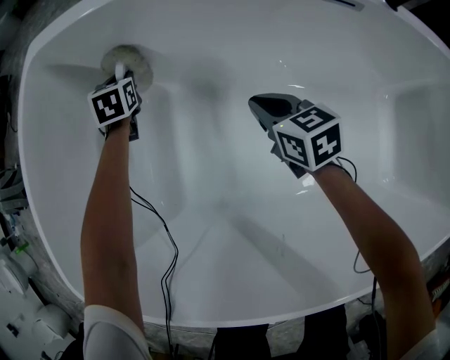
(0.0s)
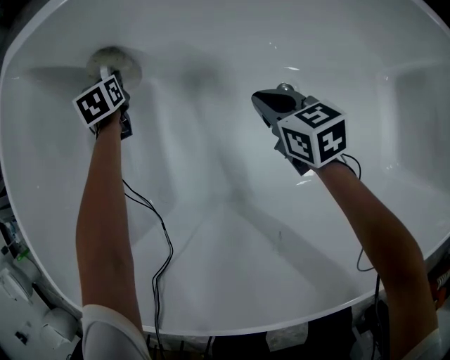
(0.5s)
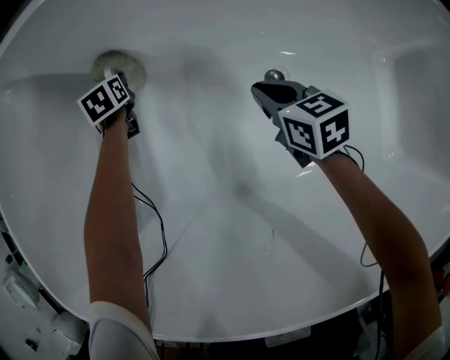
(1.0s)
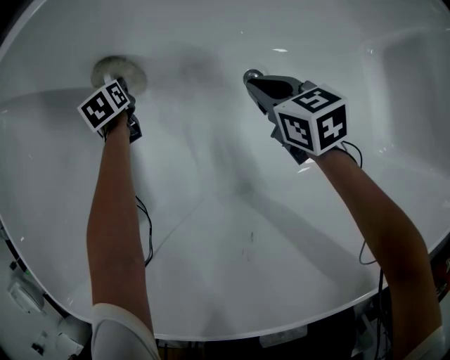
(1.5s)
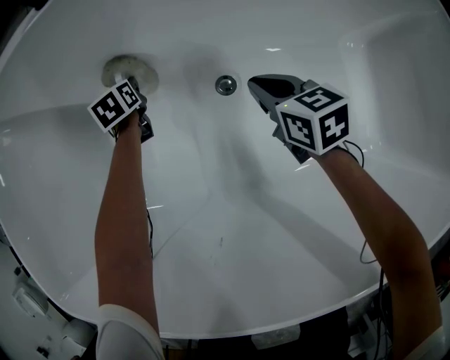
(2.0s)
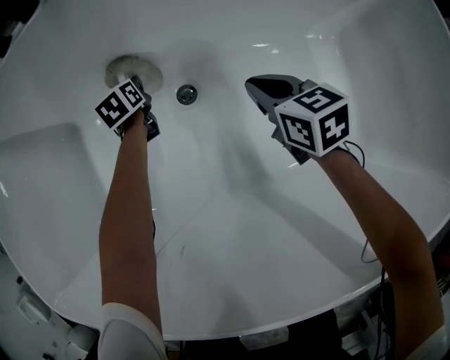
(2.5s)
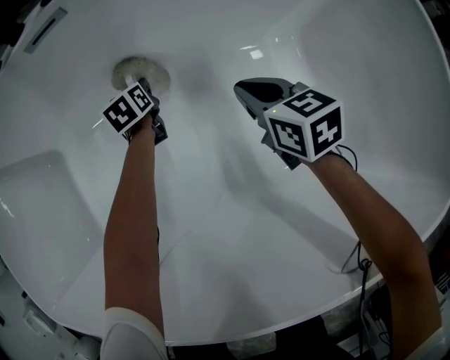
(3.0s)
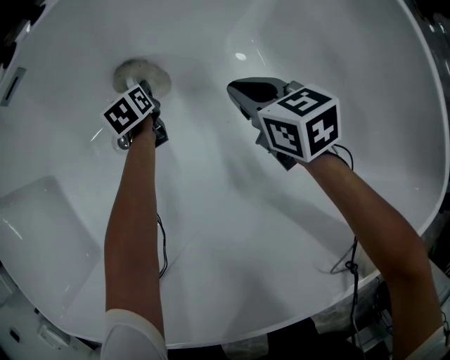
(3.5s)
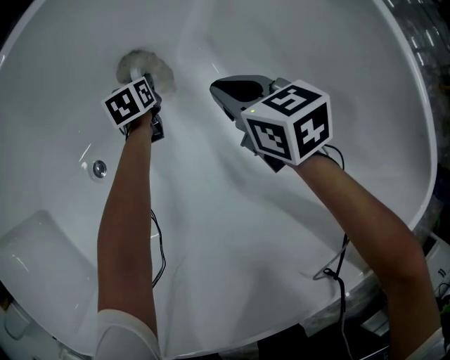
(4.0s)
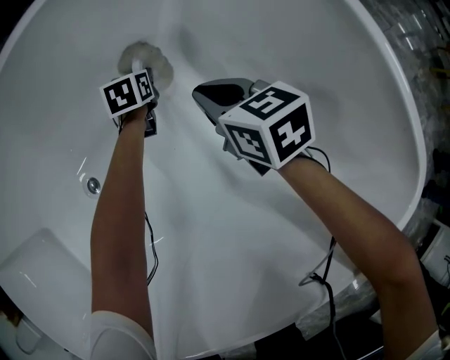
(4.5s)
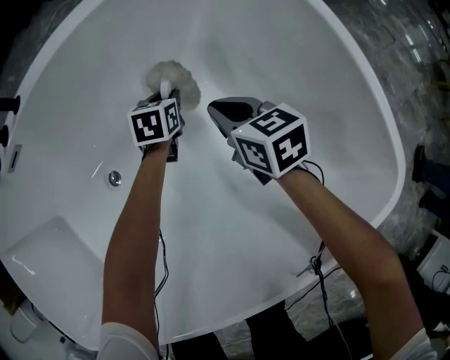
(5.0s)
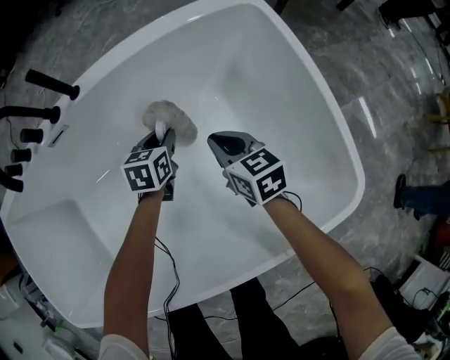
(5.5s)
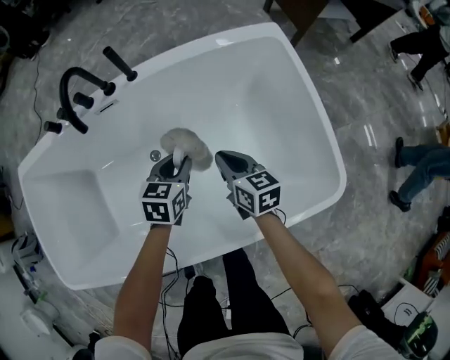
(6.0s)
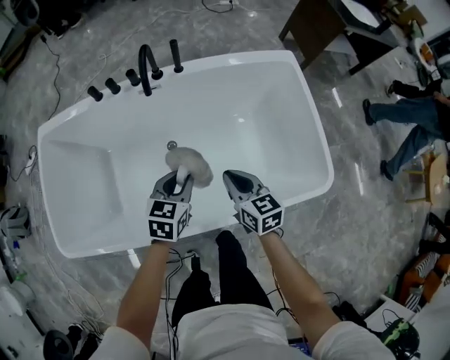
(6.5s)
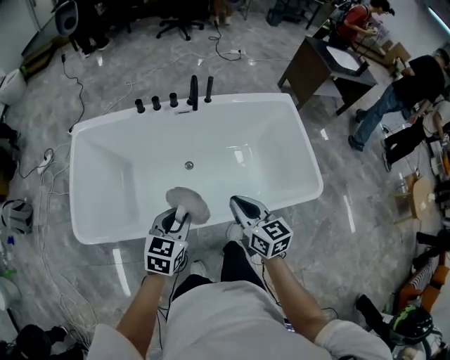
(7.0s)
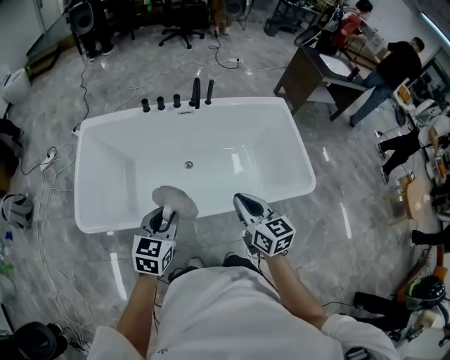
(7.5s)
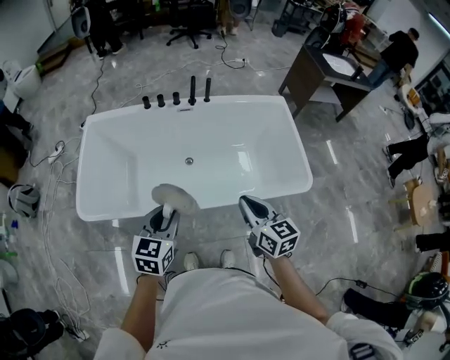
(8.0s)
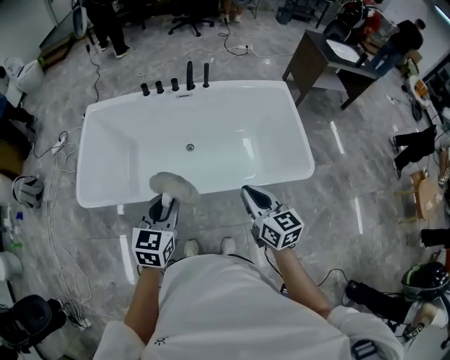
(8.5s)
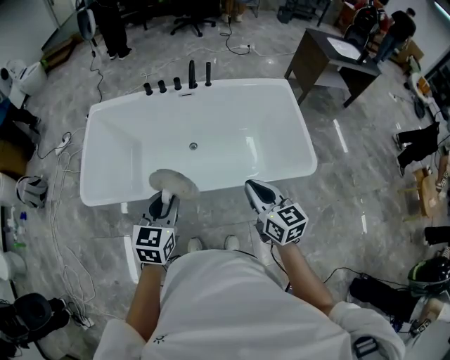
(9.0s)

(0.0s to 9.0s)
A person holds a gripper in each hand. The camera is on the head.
0.0s - 2.0s: Both grippers move to the right, downward and backward, about 20 cm.
2.0s - 4.5s: The two grippers travel together, approximately 60 cm. The left gripper turns by some 40 degrees.
4.5s - 7.0s: Both grippers are carried backward and to the left, some 60 cm. Both grippers move upward, some 60 cm.
7.0s - 9.0s: The left gripper shifts about 15 cm backward and upward, while the right gripper goes roughly 15 cm backward, to the right and upward.

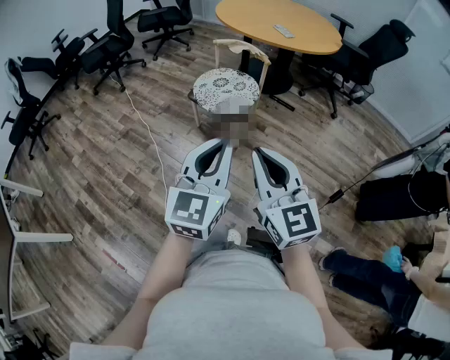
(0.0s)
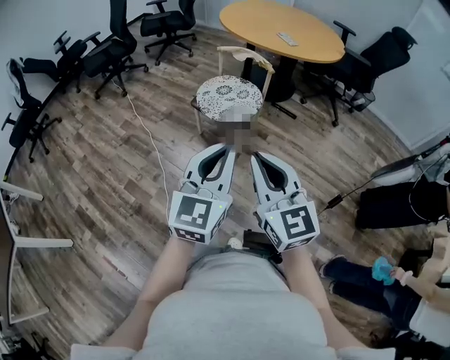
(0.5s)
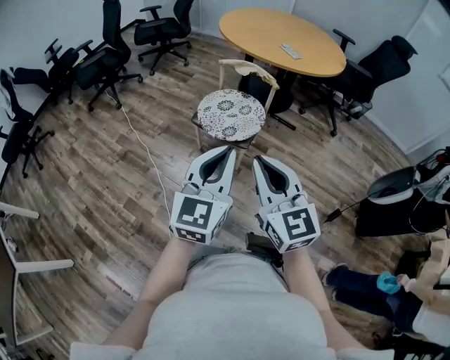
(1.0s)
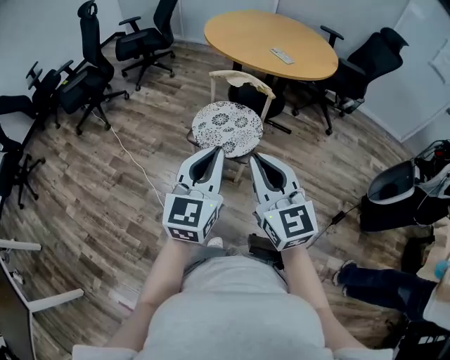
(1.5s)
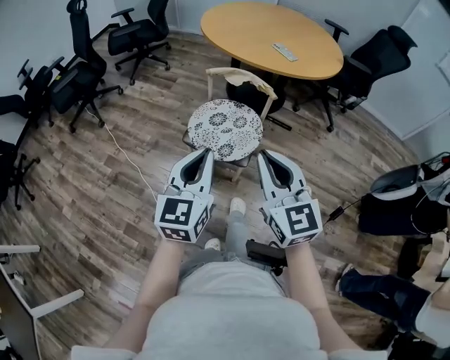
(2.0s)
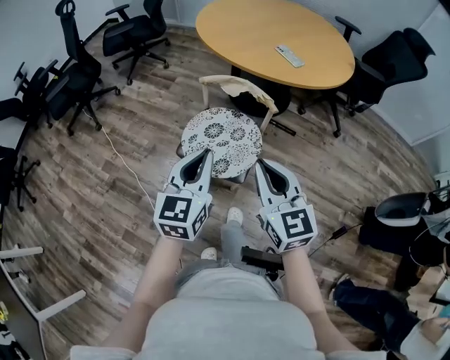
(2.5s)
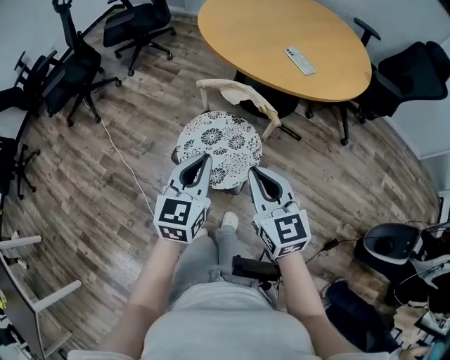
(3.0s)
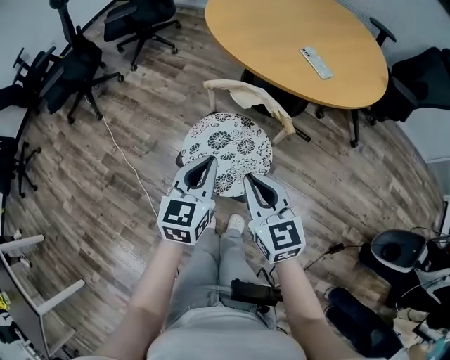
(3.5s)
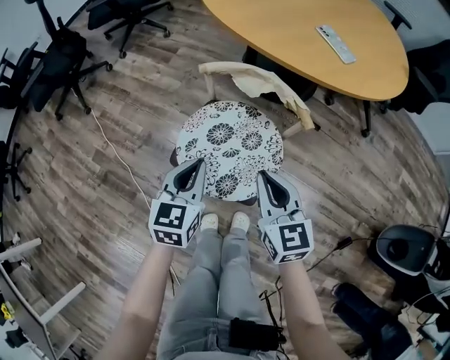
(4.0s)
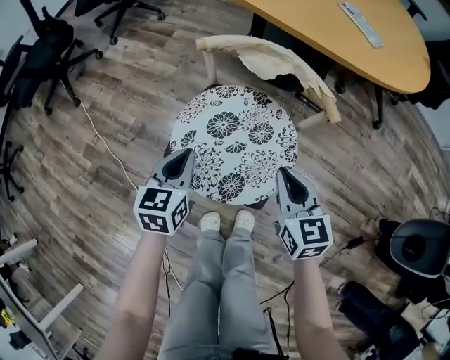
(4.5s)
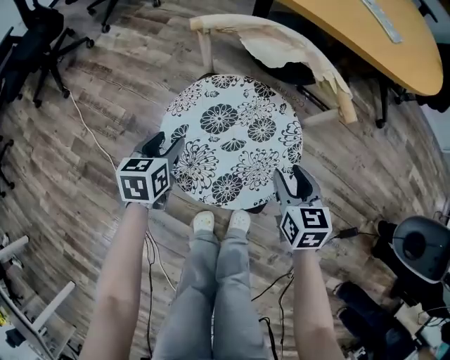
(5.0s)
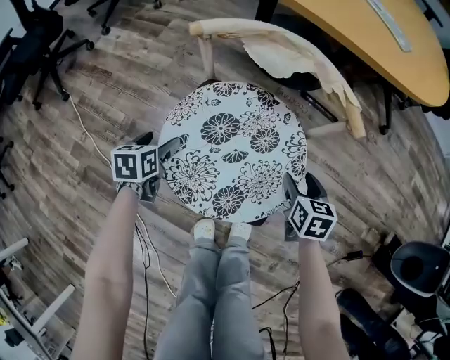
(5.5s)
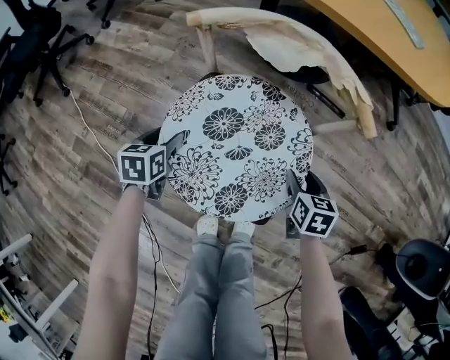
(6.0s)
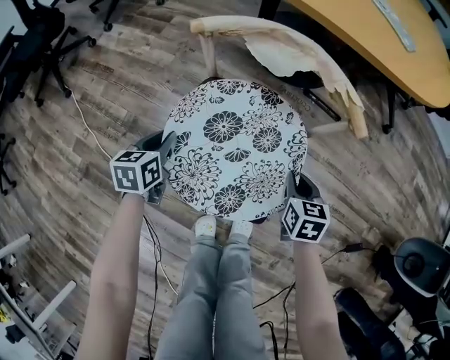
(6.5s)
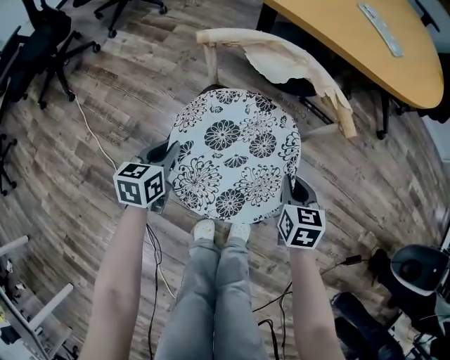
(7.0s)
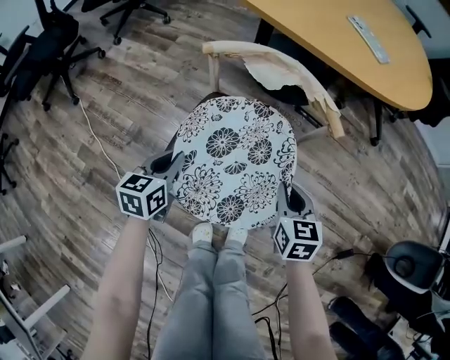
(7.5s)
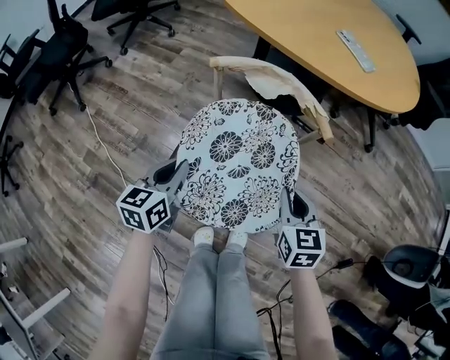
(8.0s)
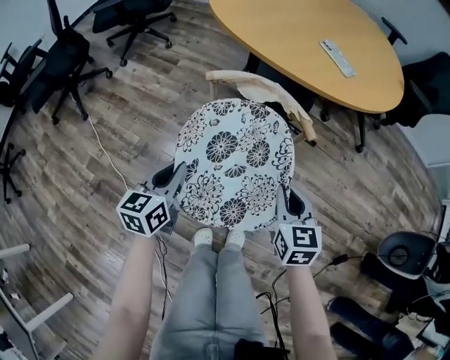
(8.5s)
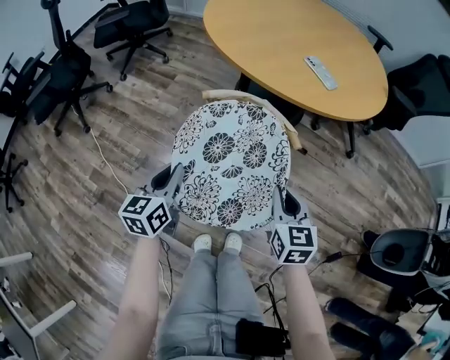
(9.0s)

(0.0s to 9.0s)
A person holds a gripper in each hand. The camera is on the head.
0.0s - 2.0s: The right gripper is displaced forward by about 30 cm, while the left gripper goes about 30 cm forward and to the left.
2.0s - 4.5s: The two grippers go some 50 cm downward and forward. The right gripper changes its angle by roughly 30 degrees. The left gripper turns by approximately 30 degrees.
4.5s - 7.0s: The right gripper travels downward by some 15 cm, rotates roughly 20 degrees, and opens and closes again, while the left gripper shifts roughly 15 cm downward and to the left, and opens and closes again.
7.0s - 9.0s: The two grippers go approximately 10 cm upward. The right gripper changes its angle by about 20 degrees.

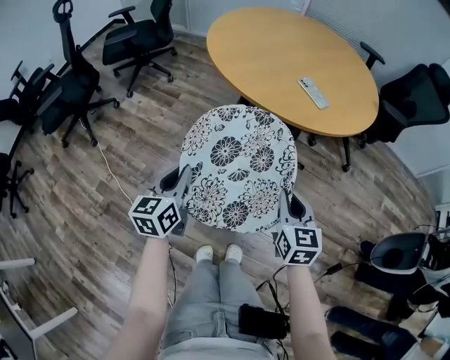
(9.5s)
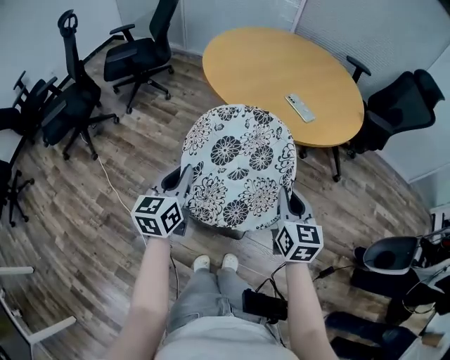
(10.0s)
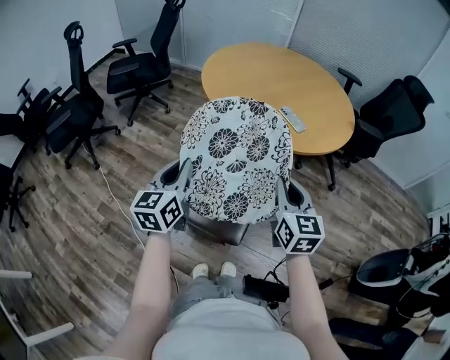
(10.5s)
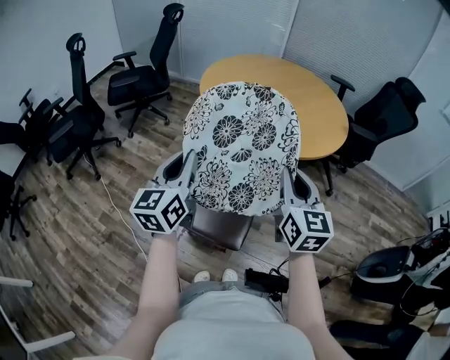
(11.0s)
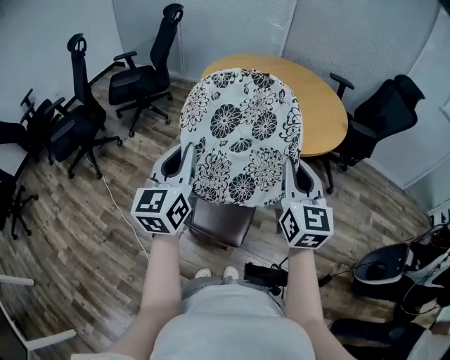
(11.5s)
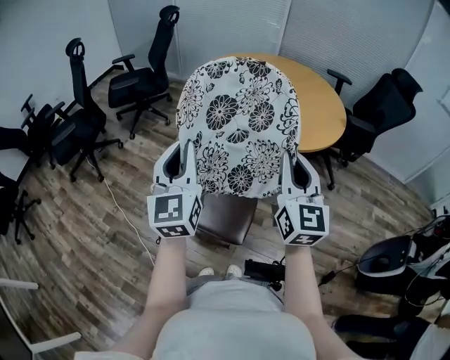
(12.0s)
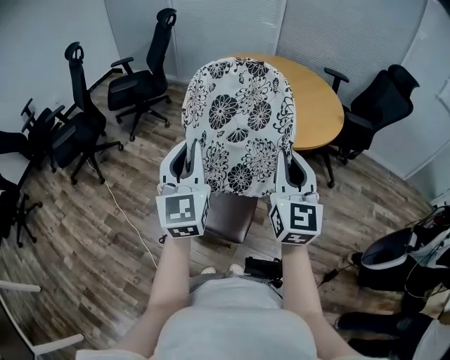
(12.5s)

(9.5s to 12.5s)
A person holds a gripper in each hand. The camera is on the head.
9.5s - 11.0s: The grippers both shift backward by about 5 cm. The left gripper changes its angle by roughly 20 degrees, while the right gripper rotates some 20 degrees.
11.0s - 12.5s: The left gripper heads backward, covering roughly 5 cm, and swivels about 30 degrees.

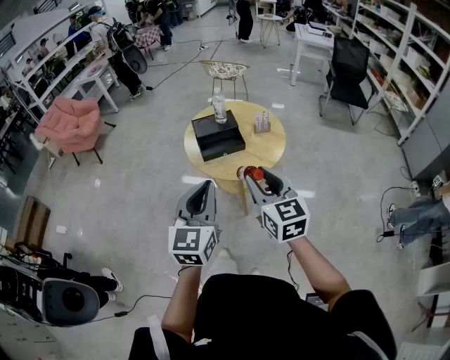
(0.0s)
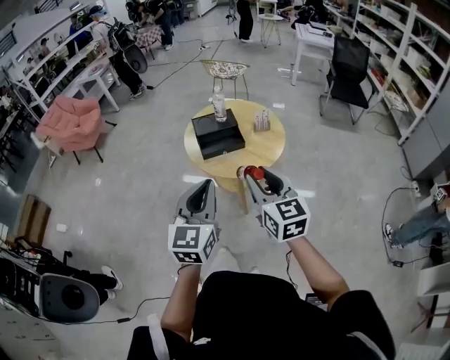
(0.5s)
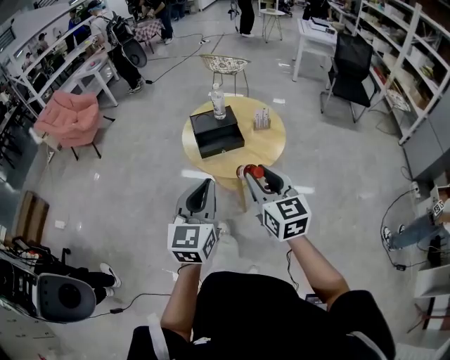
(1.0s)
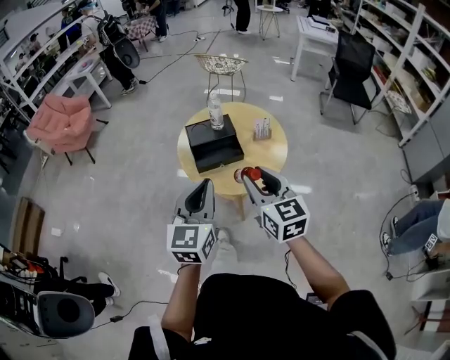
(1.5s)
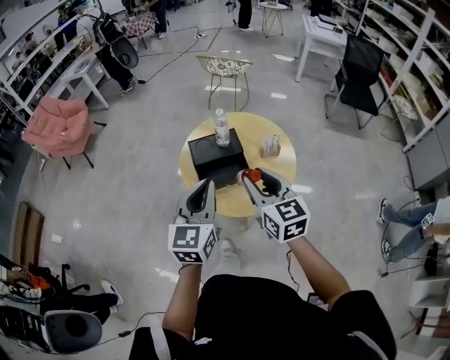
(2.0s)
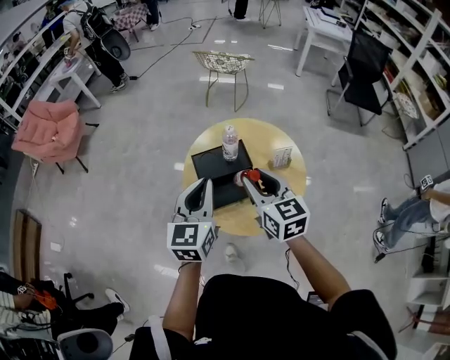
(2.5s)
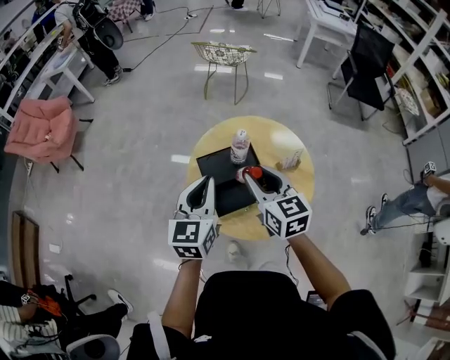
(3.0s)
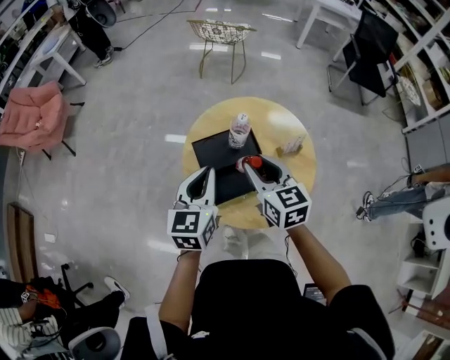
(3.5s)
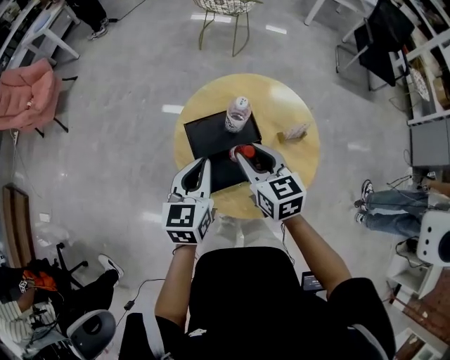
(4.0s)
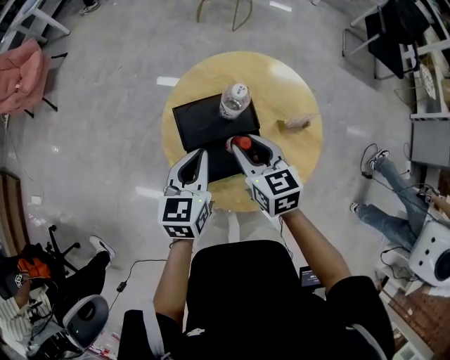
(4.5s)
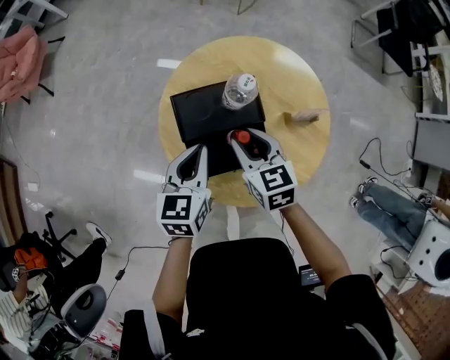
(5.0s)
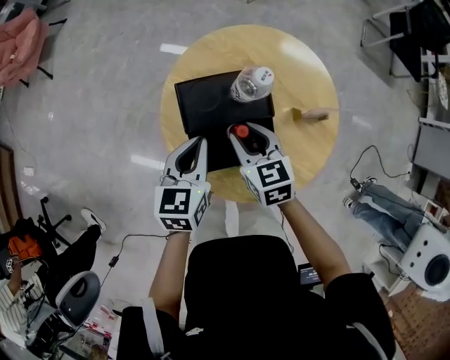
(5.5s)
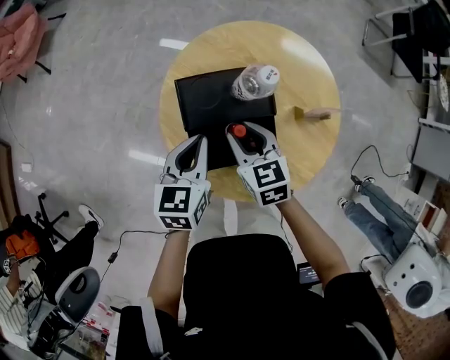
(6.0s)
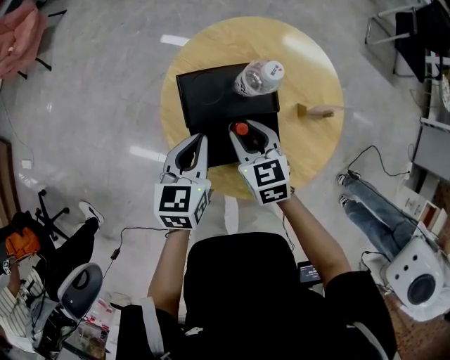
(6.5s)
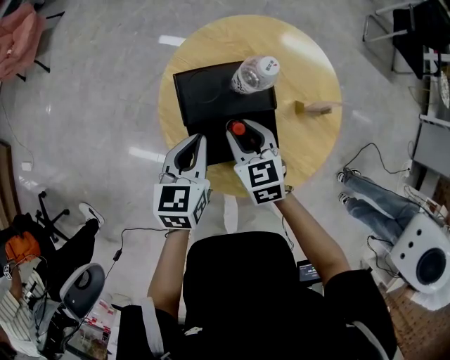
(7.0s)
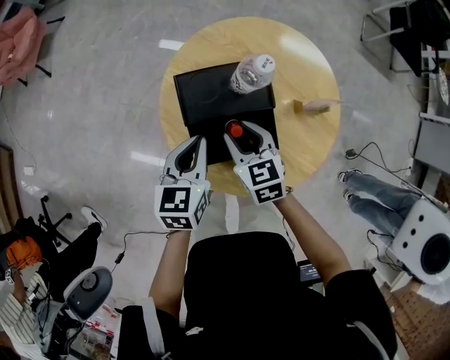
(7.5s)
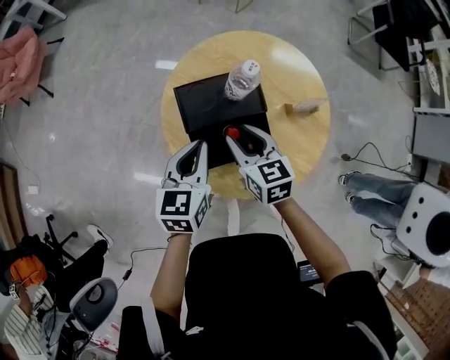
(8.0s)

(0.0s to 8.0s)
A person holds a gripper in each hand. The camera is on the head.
0.0s - 2.0s: The grippers both shift forward by roughly 25 cm.
2.0s - 4.0s: Both grippers travel together forward and downward, about 30 cm.
4.0s - 6.0s: The grippers both shift downward by some 15 cm.
6.0s - 8.0s: The right gripper moves about 5 cm. Meanwhile the left gripper moves about 5 cm.
